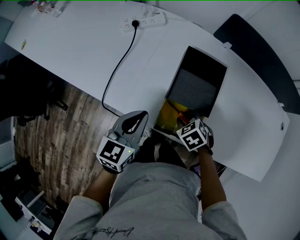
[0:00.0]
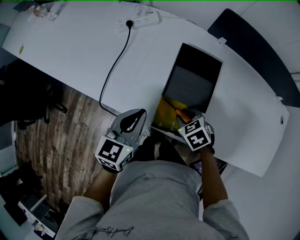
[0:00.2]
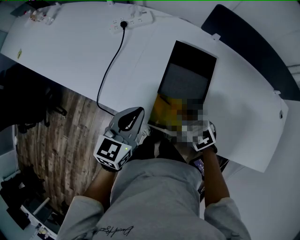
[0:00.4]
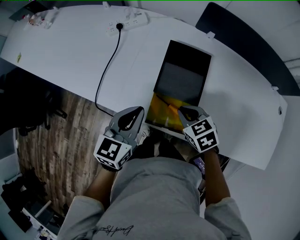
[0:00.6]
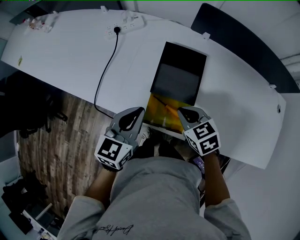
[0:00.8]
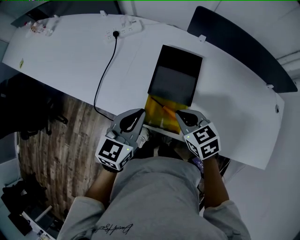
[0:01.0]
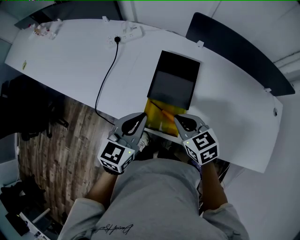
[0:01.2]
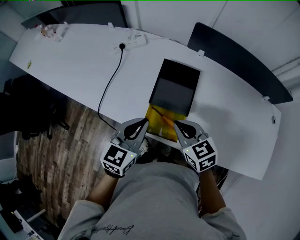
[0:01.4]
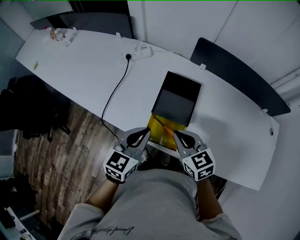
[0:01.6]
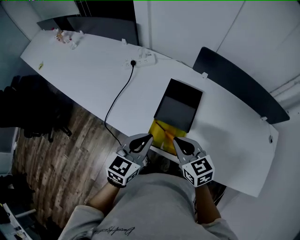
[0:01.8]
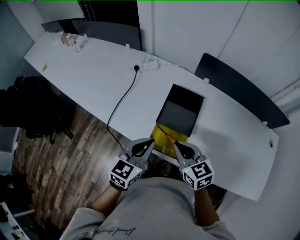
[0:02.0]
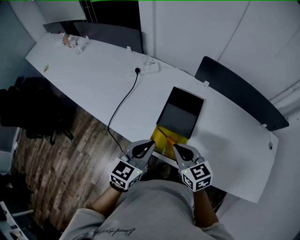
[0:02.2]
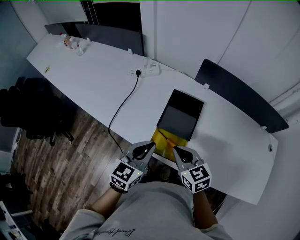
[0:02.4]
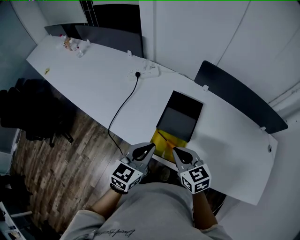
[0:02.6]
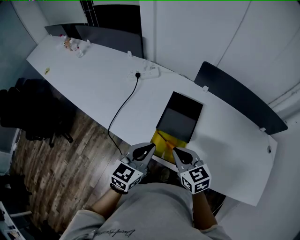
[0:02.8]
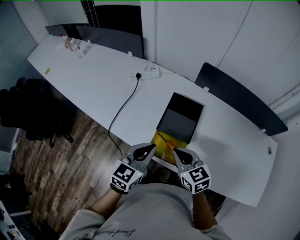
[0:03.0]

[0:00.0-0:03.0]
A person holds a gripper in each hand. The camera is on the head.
0:00.0 to 0:01.6: The left gripper heads to the right and upward, covering some 10 cm. The right gripper shifts roughly 20 cm upward, angles its fingers upward, by roughly 40 degrees, and closes up.
0:01.6 to 0:03.0: The grippers move only a little.

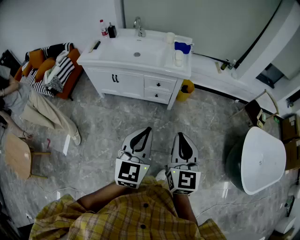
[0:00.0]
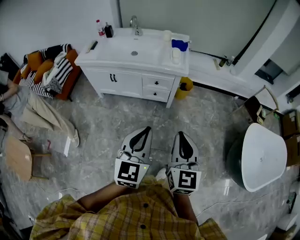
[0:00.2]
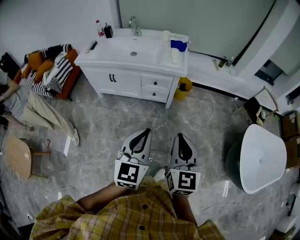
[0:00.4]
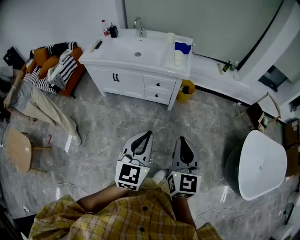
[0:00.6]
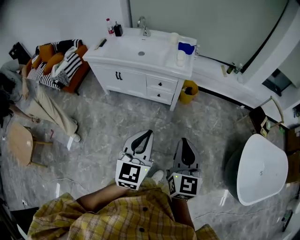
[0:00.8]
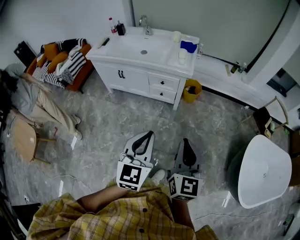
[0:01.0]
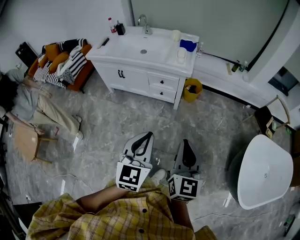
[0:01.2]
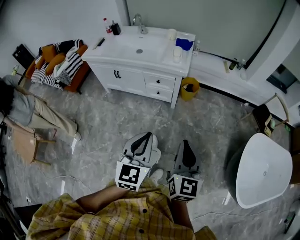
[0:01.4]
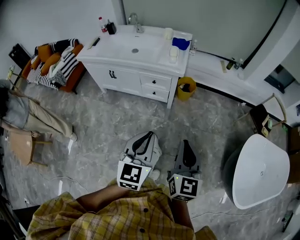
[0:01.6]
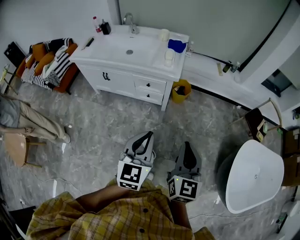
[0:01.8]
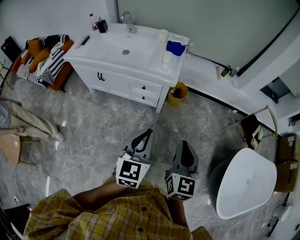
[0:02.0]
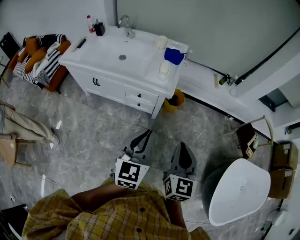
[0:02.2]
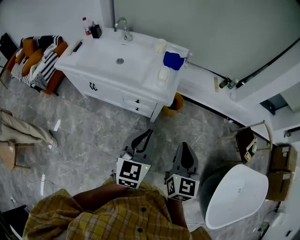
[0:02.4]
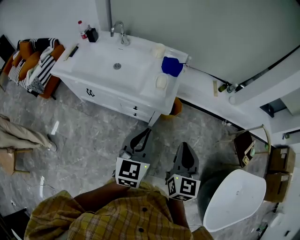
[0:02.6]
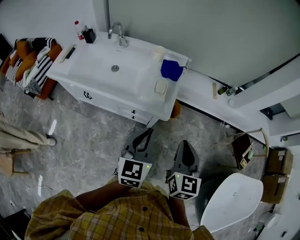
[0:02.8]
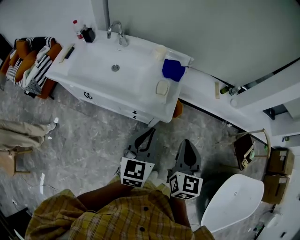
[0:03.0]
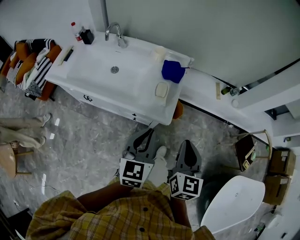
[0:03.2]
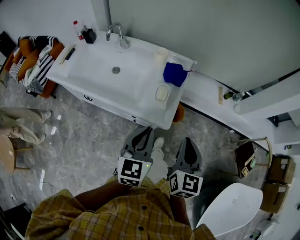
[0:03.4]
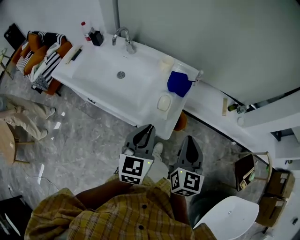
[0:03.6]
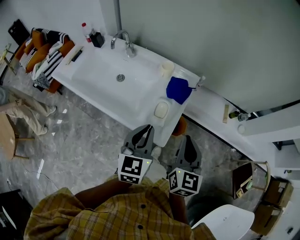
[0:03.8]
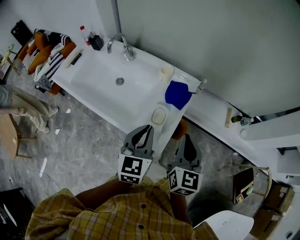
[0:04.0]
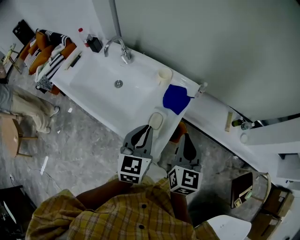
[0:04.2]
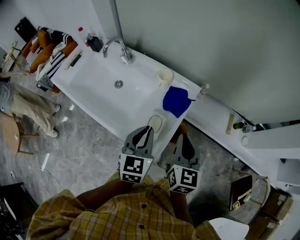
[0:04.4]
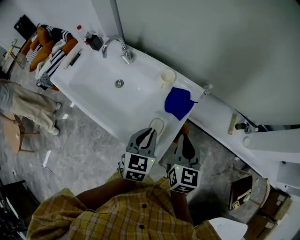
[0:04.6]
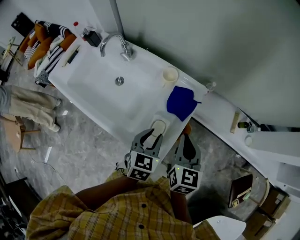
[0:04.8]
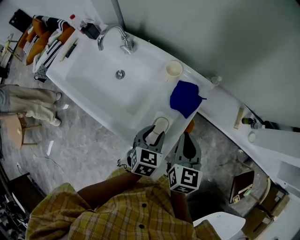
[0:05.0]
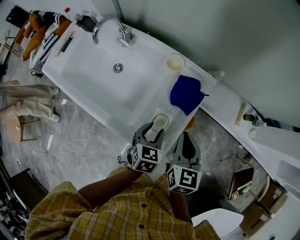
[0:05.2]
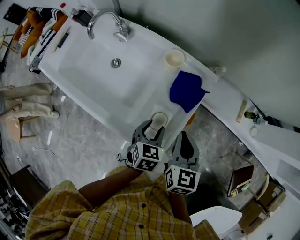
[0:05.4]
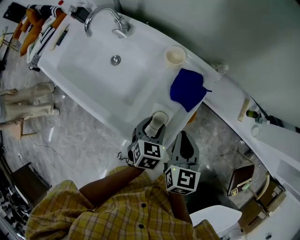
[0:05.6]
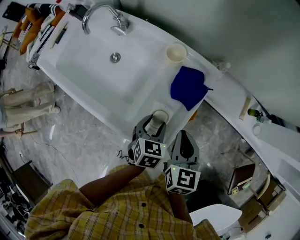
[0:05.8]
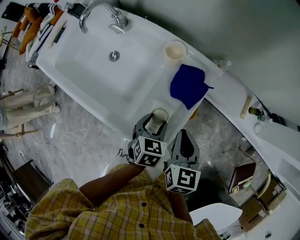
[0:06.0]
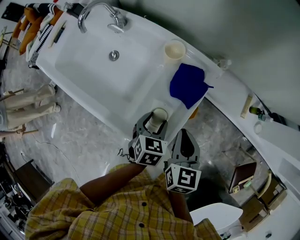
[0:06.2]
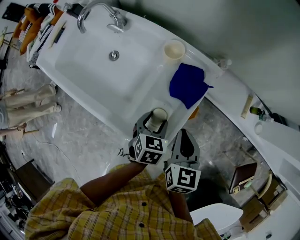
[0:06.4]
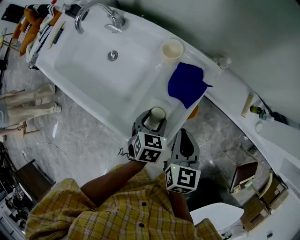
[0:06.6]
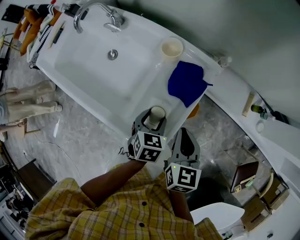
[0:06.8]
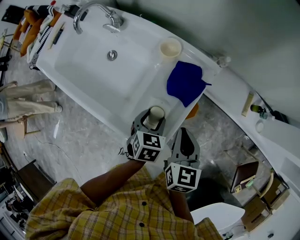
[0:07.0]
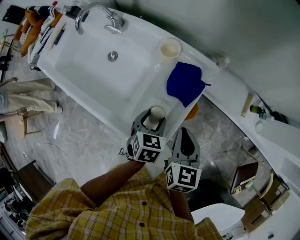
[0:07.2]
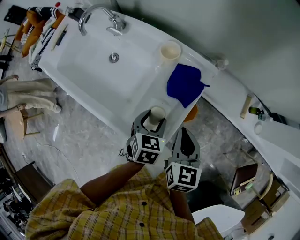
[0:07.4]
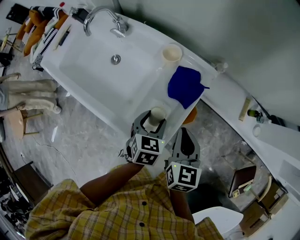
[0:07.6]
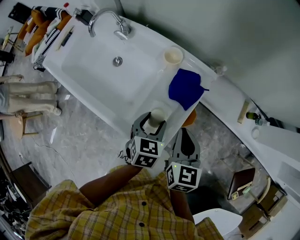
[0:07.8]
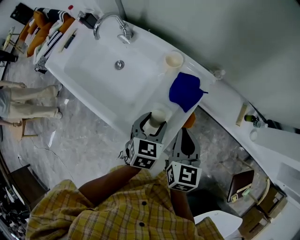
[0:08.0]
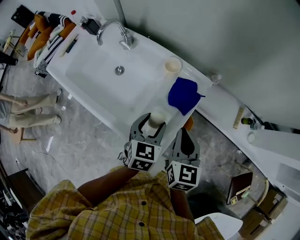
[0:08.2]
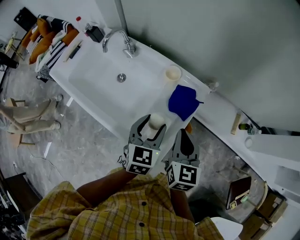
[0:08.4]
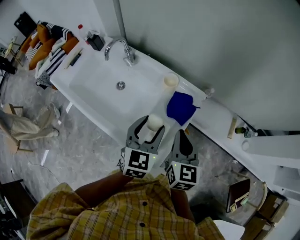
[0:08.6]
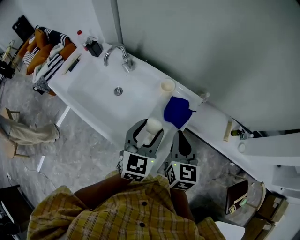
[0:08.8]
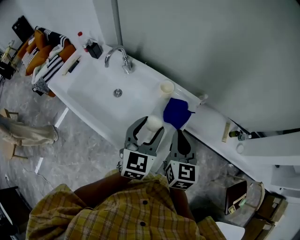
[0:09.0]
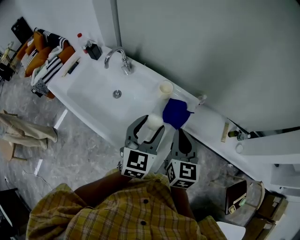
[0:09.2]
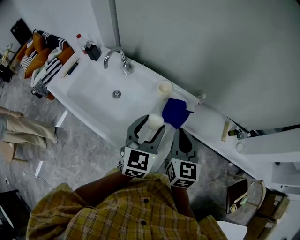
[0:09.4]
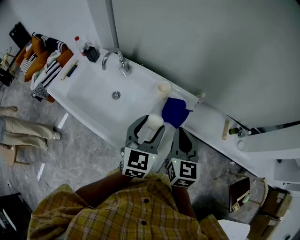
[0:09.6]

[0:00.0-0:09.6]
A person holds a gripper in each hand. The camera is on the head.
0:00.0 to 0:01.6: The two grippers go roughly 15 cm to the right.
0:01.6 to 0:03.2: The two grippers travel together, forward, approximately 40 cm.
0:03.2 to 0:04.8: The right gripper goes roughly 35 cm forward. The left gripper goes some 30 cm forward and downward, changes its angle by roughly 20 degrees, and opens.
0:04.8 to 0:06.4: The two grippers go about 10 cm downward. The left gripper opens its fingers.
0:06.4 to 0:08.0: The left gripper travels upward by some 10 cm.
0:08.0 to 0:09.6: The left gripper goes roughly 20 cm upward, and swivels approximately 30 degrees. Meanwhile the right gripper travels upward by roughly 10 cm.

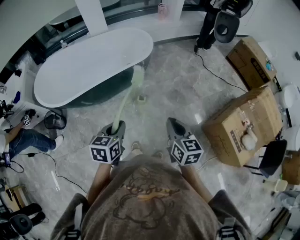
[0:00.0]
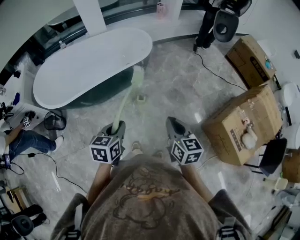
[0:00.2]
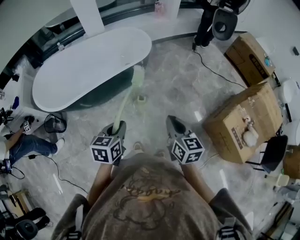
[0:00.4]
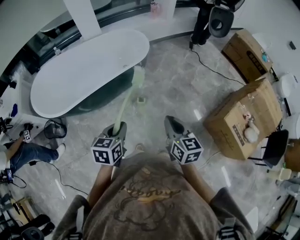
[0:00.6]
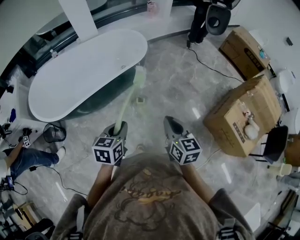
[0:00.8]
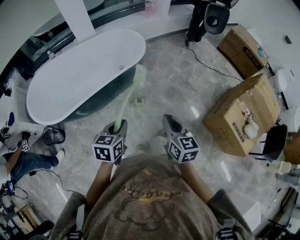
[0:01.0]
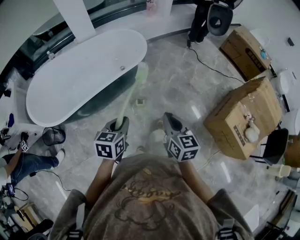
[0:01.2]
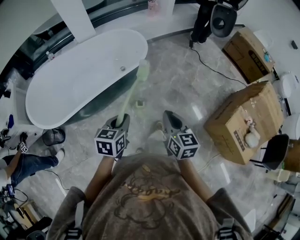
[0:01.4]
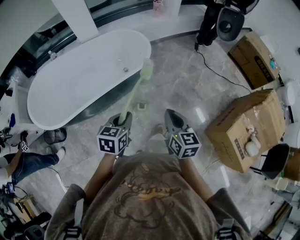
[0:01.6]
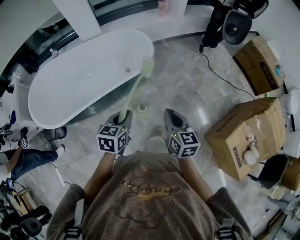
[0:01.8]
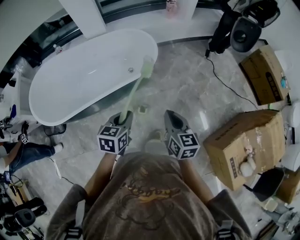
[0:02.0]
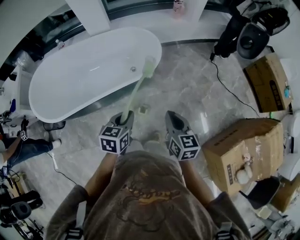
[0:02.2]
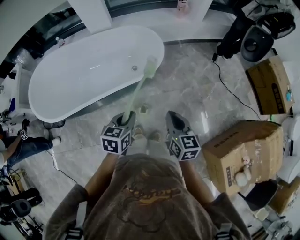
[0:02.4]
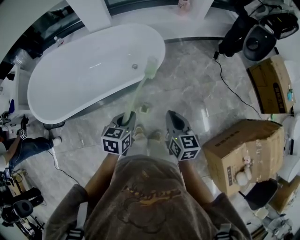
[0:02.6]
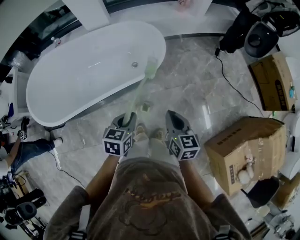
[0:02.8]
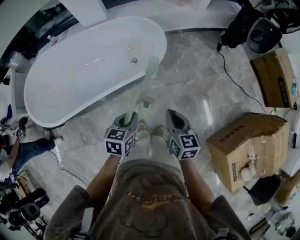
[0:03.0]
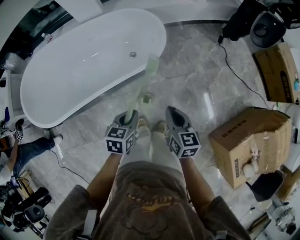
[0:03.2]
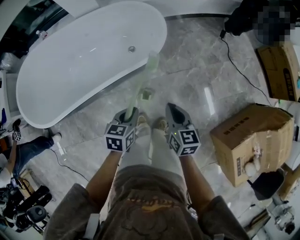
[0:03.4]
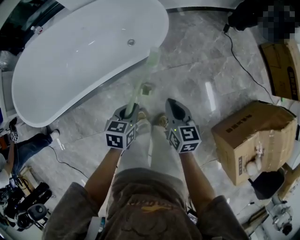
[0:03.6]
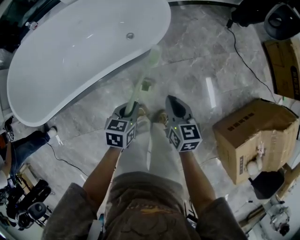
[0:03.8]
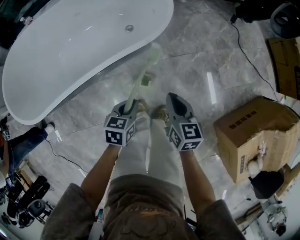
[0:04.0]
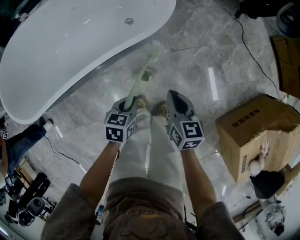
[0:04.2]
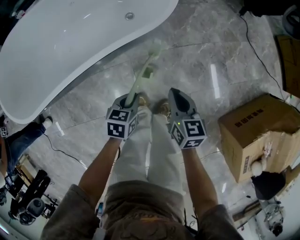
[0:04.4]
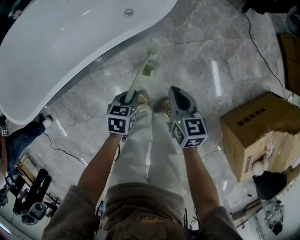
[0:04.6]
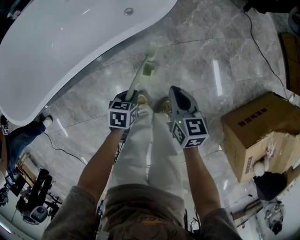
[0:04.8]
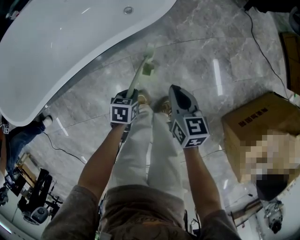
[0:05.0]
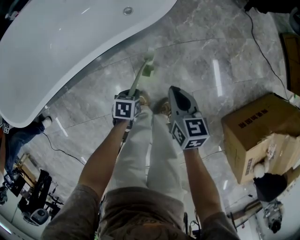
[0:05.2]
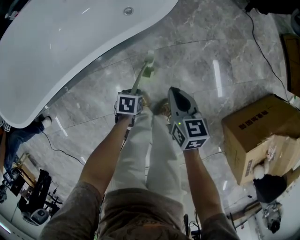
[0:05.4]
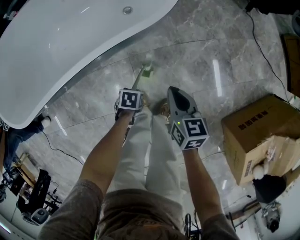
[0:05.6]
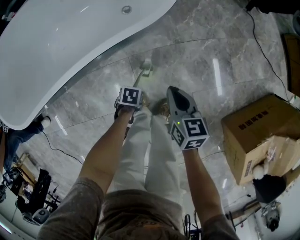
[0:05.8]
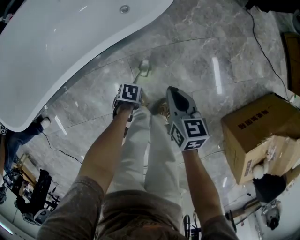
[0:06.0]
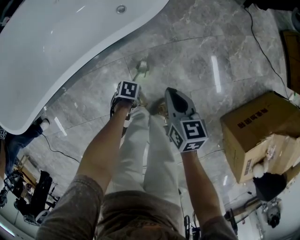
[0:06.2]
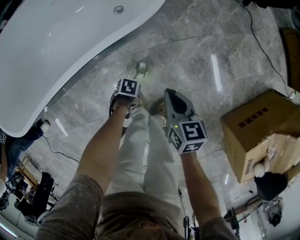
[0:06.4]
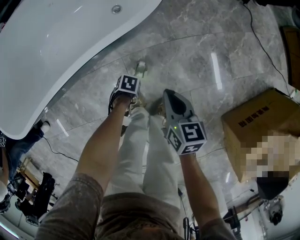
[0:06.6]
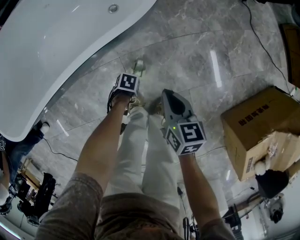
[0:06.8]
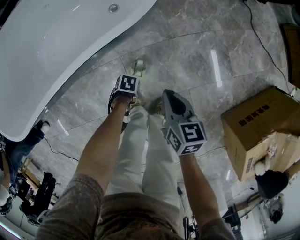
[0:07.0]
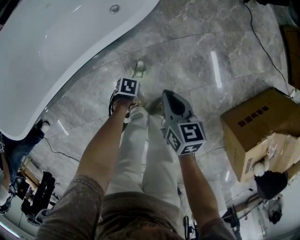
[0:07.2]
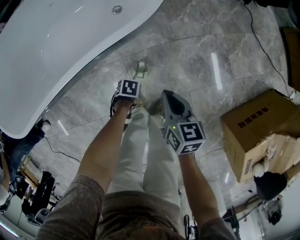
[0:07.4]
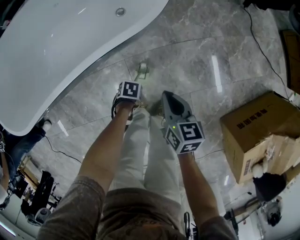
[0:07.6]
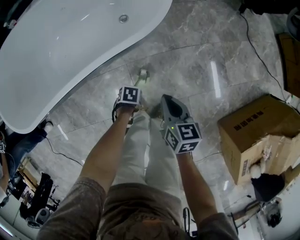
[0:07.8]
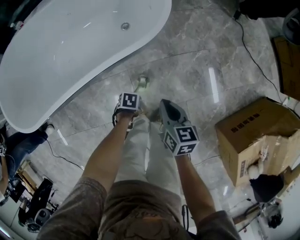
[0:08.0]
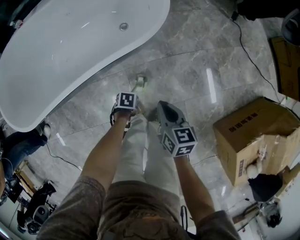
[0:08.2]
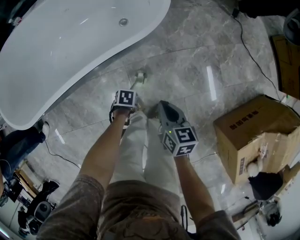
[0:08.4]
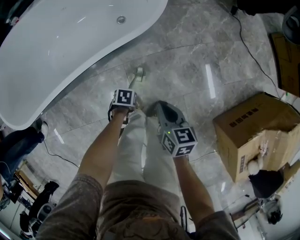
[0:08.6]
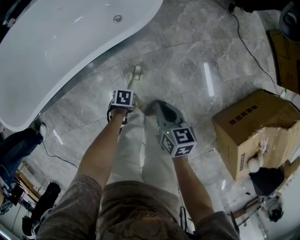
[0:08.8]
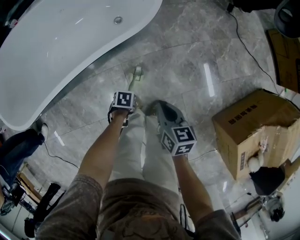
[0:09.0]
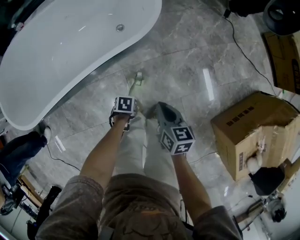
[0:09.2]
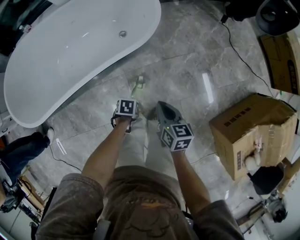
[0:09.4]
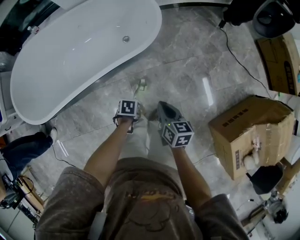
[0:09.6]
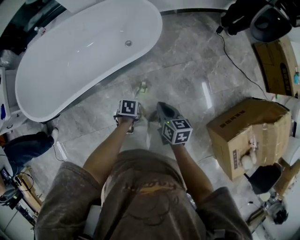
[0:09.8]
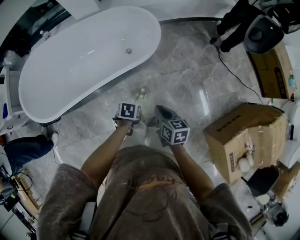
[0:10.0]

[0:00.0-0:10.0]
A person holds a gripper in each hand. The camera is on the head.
0:00.0 to 0:01.4: The grippers both shift forward by about 15 cm.
0:01.4 to 0:02.8: Both grippers travel together forward, some 20 cm.
0:02.8 to 0:04.2: Both grippers move downward, some 25 cm.
0:04.2 to 0:05.8: The left gripper shifts approximately 25 cm downward, and swivels some 30 degrees. Meanwhile the right gripper travels downward by approximately 10 cm.
0:05.8 to 0:07.2: The grippers make only small movements.
0:07.2 to 0:08.6: The grippers both shift upward by approximately 5 cm.
0:08.6 to 0:10.0: The left gripper is displaced upward by approximately 30 cm, and closes up. Meanwhile the right gripper is displaced upward by roughly 15 cm.

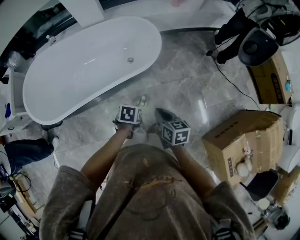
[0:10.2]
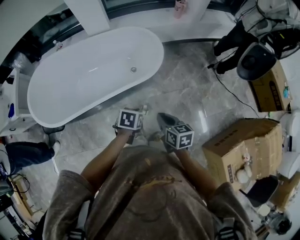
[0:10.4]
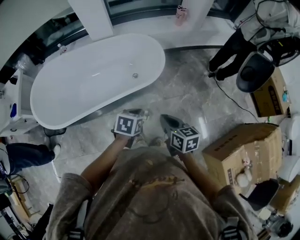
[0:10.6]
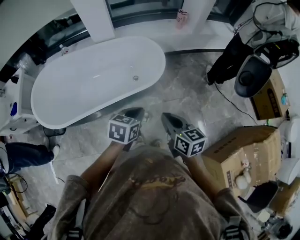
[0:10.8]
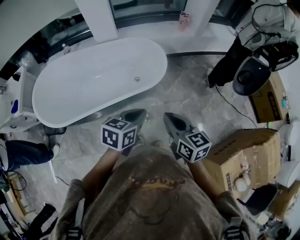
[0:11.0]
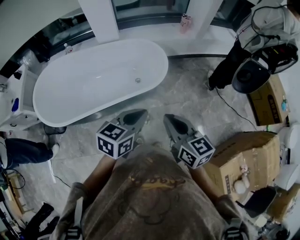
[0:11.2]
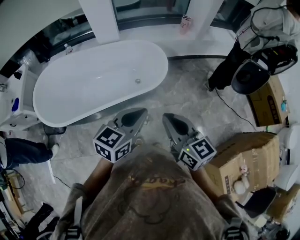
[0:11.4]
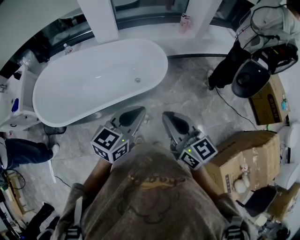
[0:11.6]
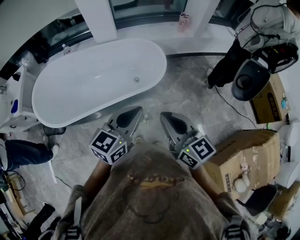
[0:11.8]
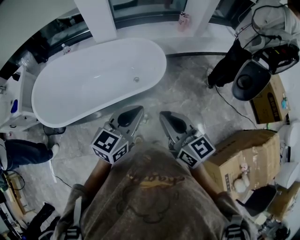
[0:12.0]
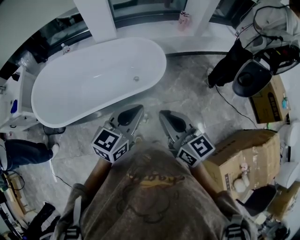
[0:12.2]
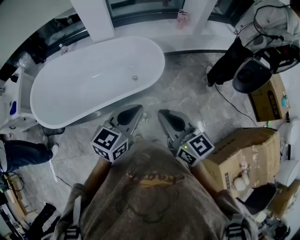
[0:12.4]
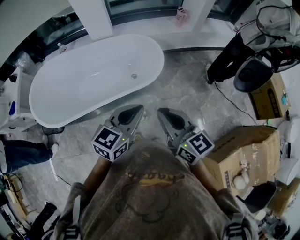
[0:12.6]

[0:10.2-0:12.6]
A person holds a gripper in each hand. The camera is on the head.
0:10.2 to 0:11.4: The grippers both shift upward by some 30 cm. The left gripper angles its fingers upward, by approximately 50 degrees. The right gripper swivels some 30 degrees.
0:11.4 to 0:12.6: The grippers make only small movements.
